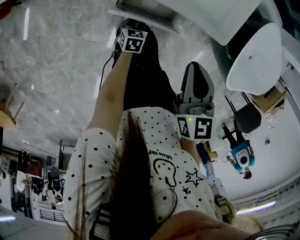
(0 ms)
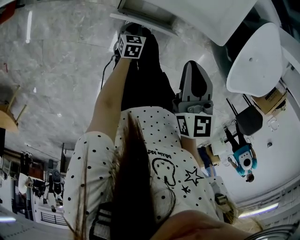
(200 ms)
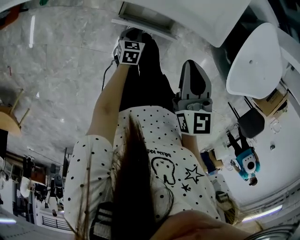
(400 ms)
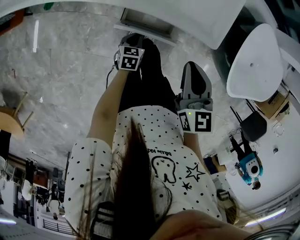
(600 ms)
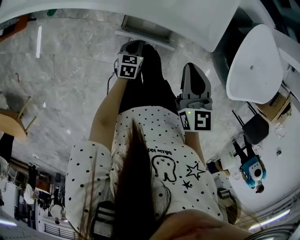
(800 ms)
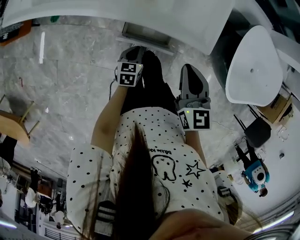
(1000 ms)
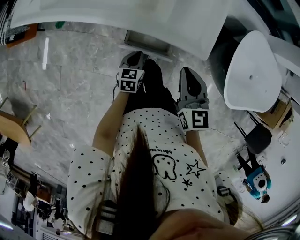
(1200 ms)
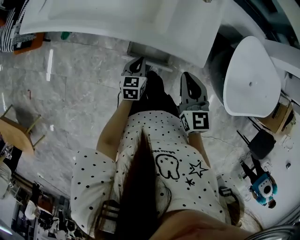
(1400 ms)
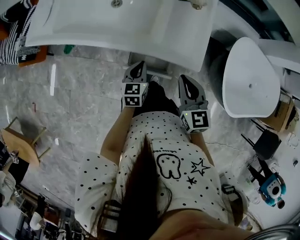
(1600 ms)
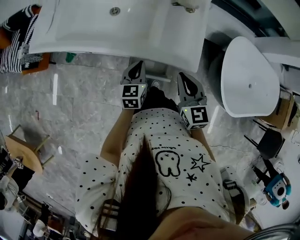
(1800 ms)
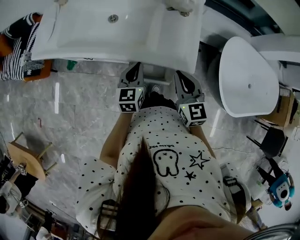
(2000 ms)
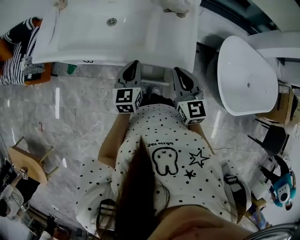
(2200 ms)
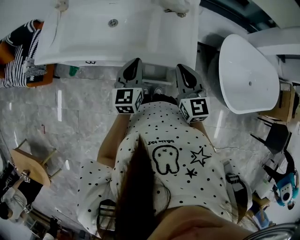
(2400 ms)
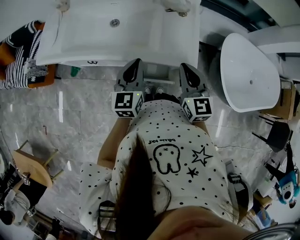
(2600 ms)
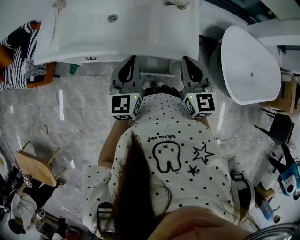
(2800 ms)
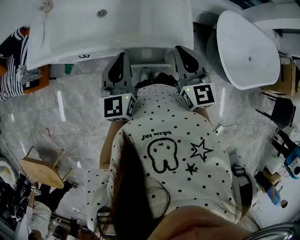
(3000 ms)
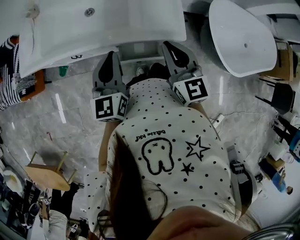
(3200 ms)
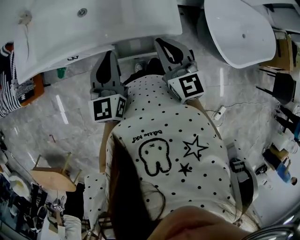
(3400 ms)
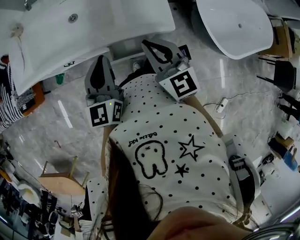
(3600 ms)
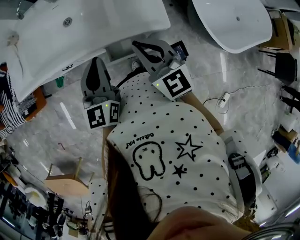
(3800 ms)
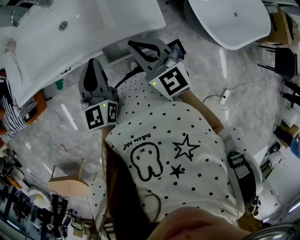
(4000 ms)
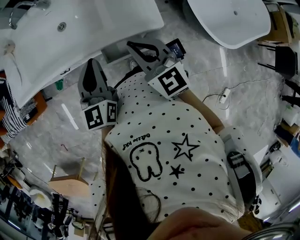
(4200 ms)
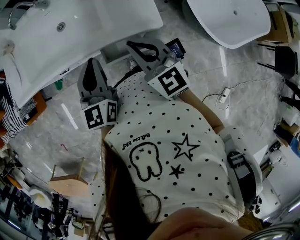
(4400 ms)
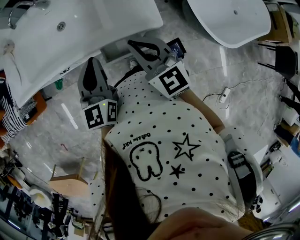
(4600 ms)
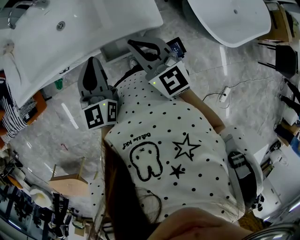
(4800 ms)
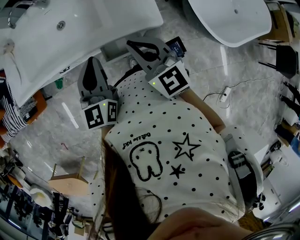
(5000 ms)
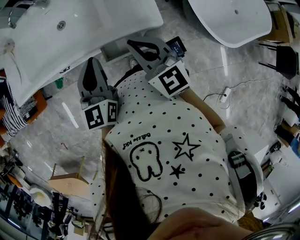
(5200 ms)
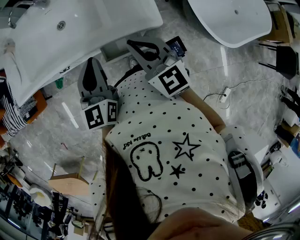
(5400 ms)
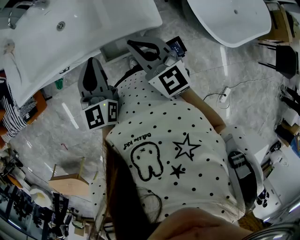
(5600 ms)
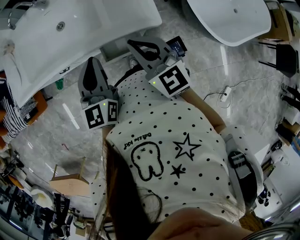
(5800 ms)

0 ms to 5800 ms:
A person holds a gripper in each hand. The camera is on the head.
0 ms to 1400 ms: The right gripper heads upward, covering about 5 cm; the left gripper shifts about 25 cm upward, turns by some 20 degrees, and closes up.
1400 ms to 2800 ms: The right gripper moves upward, approximately 10 cm. Meanwhile the left gripper moves upward, some 25 cm, and tips its fingers upward by about 30 degrees.
2800 ms to 4400 ms: There are only small adjustments of the grippers.
4400 ms to 5800 ms: Both grippers stay about where they are.

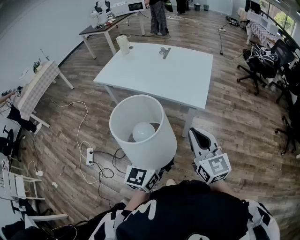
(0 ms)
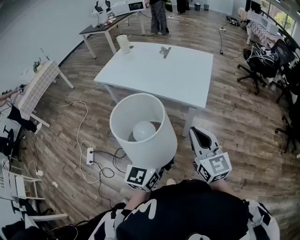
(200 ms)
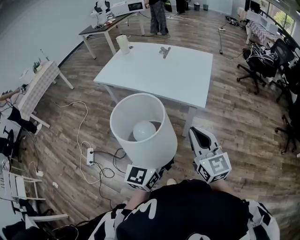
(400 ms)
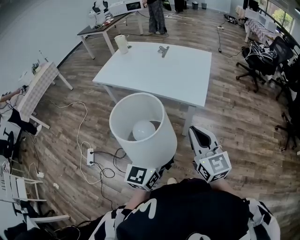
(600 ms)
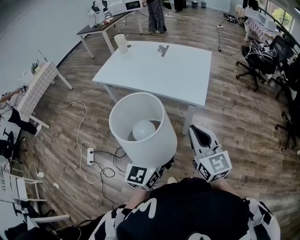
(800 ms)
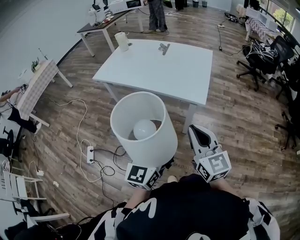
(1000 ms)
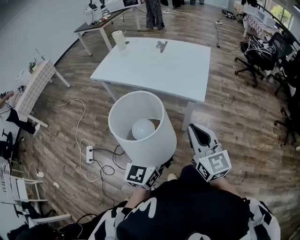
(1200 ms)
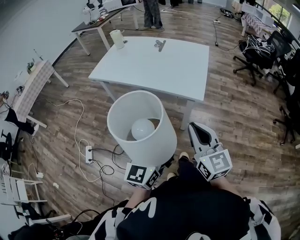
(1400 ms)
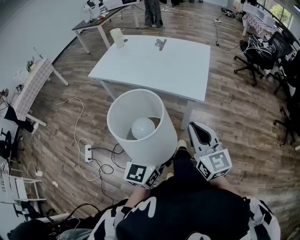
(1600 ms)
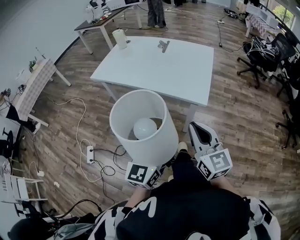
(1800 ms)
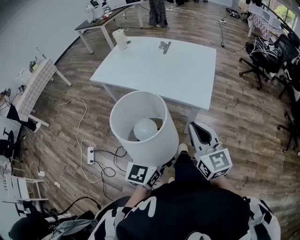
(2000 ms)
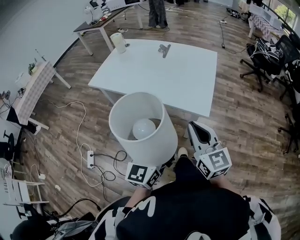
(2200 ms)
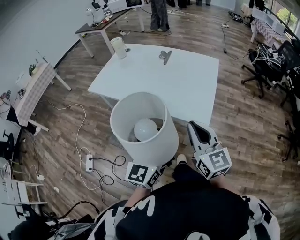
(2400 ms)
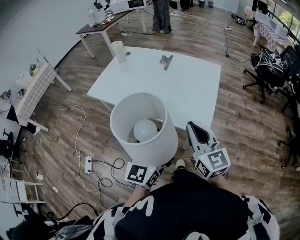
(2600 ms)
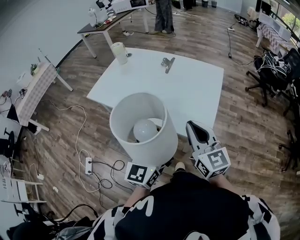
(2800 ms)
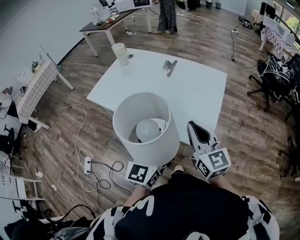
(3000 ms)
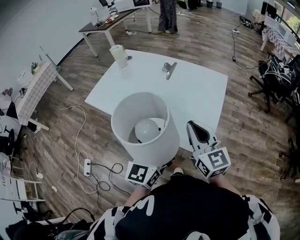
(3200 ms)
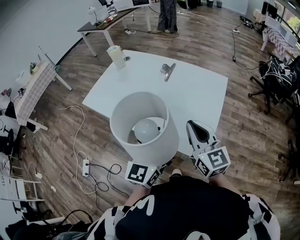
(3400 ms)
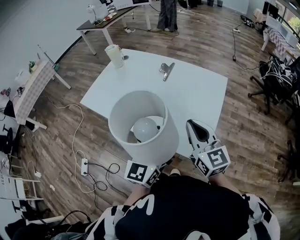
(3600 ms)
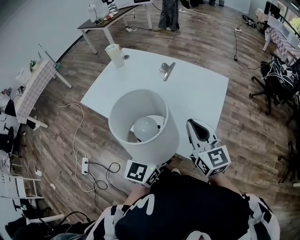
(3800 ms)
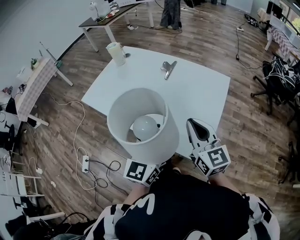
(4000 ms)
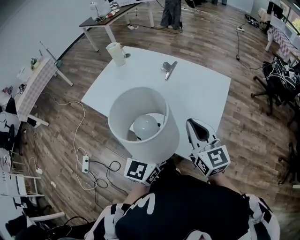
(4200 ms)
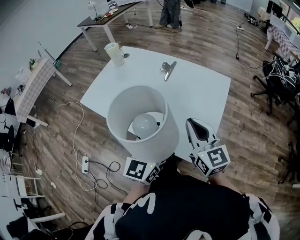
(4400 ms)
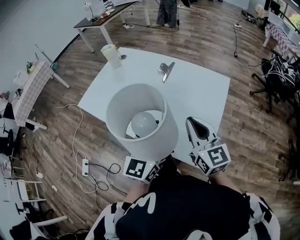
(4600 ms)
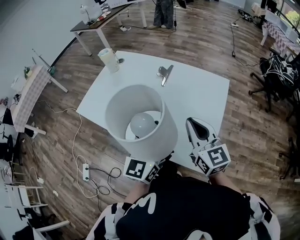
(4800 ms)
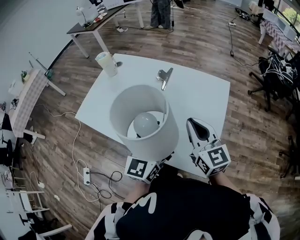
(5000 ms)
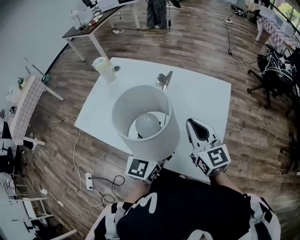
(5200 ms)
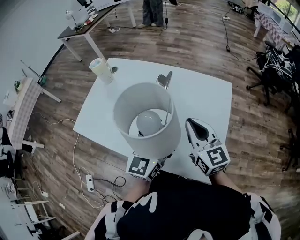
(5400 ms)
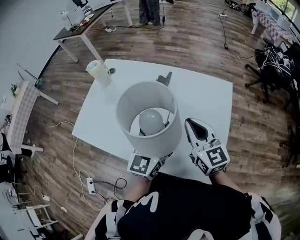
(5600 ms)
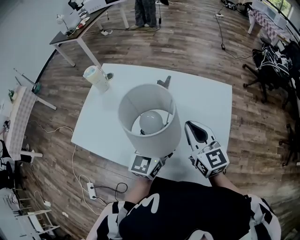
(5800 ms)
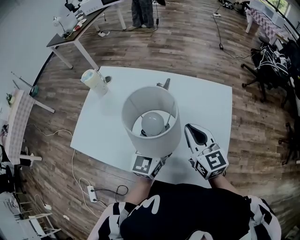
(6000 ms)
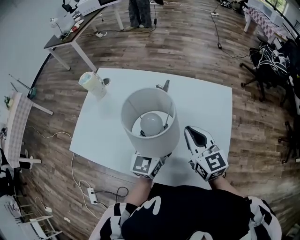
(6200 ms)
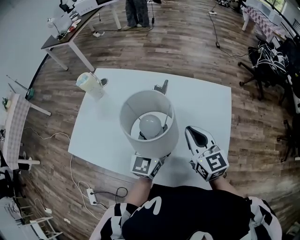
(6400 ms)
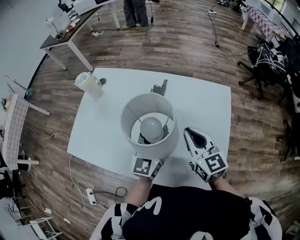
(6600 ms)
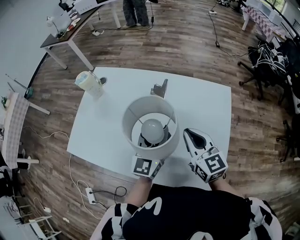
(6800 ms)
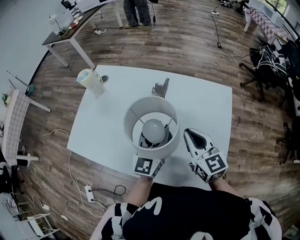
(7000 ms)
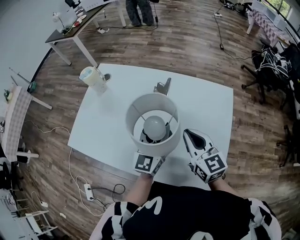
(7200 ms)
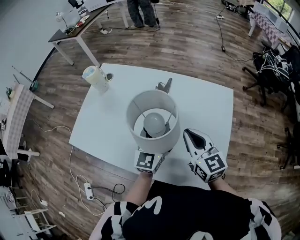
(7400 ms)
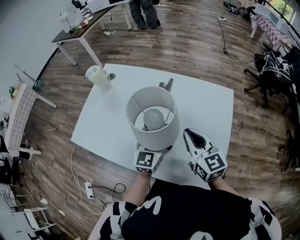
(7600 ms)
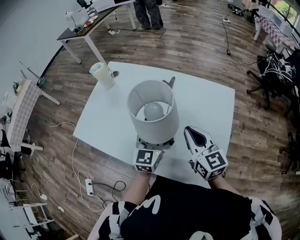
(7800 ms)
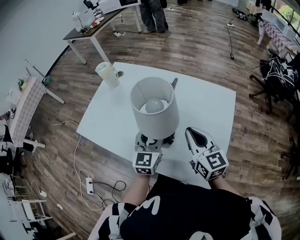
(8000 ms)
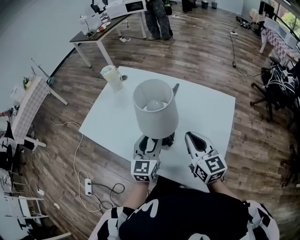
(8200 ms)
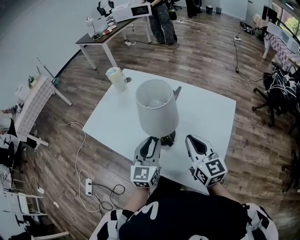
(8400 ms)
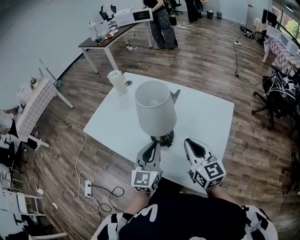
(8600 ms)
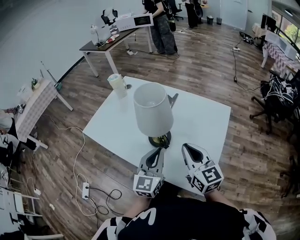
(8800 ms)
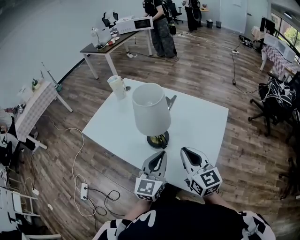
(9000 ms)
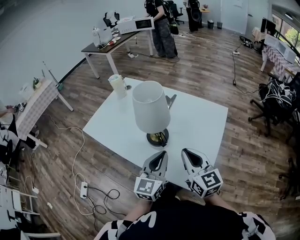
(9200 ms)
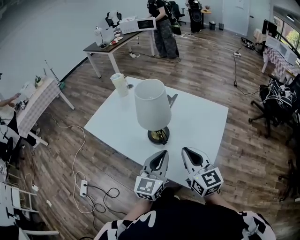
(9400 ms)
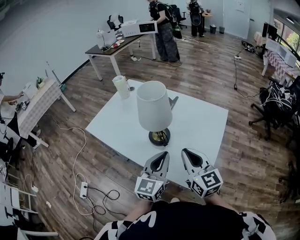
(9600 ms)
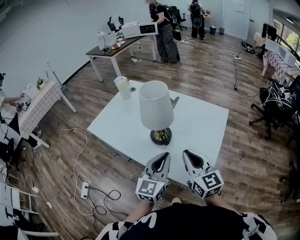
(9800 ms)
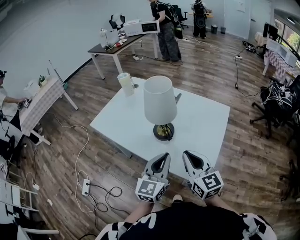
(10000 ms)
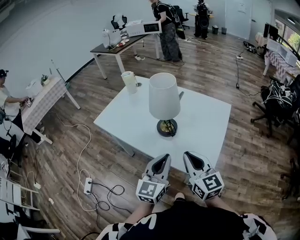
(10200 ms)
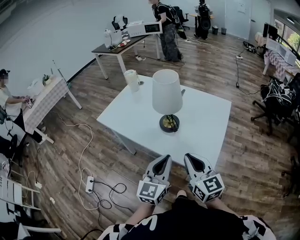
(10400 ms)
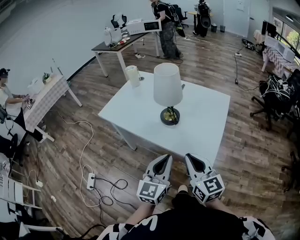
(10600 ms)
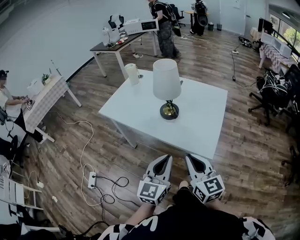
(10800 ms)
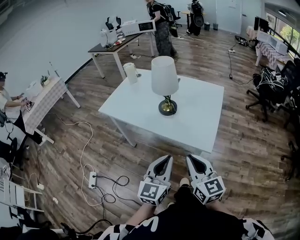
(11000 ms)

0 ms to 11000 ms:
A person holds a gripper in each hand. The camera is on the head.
0 ms to 1600 ms: The two grippers keep their place.
1600 ms to 3200 ms: The two grippers go some 30 cm forward.
3200 ms to 4800 ms: The grippers both shift forward by about 10 cm.
4800 ms to 6200 ms: Both grippers travel together forward, about 15 cm.
6200 ms to 7800 ms: The grippers move only a little.
7800 ms to 9400 ms: The two grippers go roughly 15 cm backward. The left gripper closes.
9400 ms to 11000 ms: The two grippers go approximately 25 cm backward.

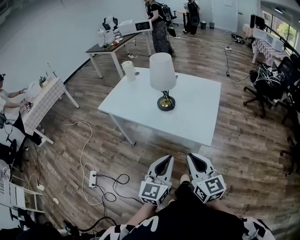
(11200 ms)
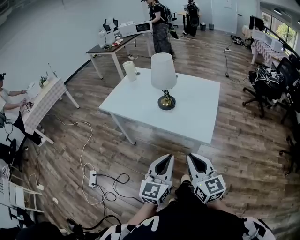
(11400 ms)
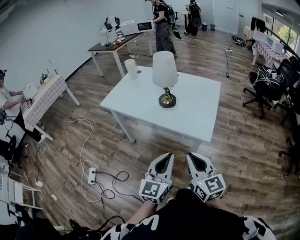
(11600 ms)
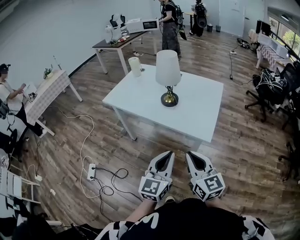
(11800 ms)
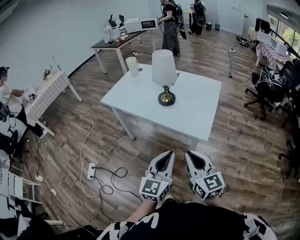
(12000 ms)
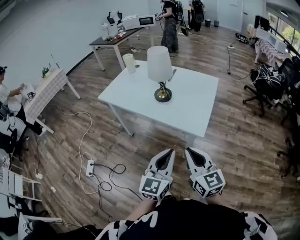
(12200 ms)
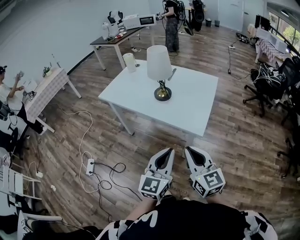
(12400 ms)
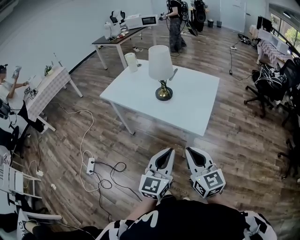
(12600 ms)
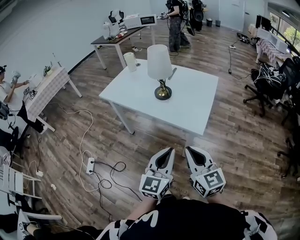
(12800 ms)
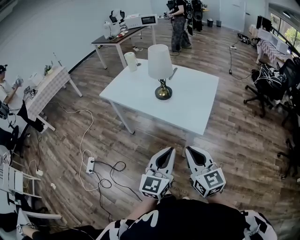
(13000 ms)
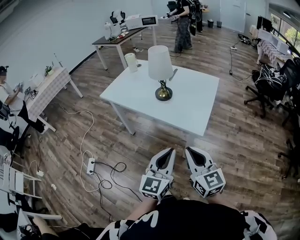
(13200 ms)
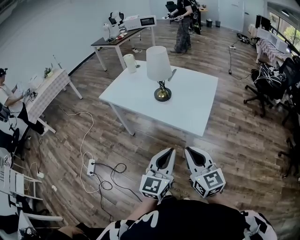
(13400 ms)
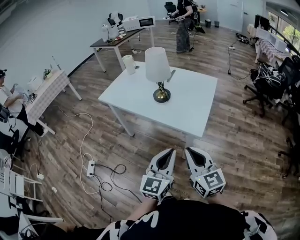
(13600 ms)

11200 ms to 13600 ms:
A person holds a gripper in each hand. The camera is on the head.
11200 ms to 12400 ms: The right gripper shifts by approximately 5 cm; the left gripper moves about 5 cm.
12400 ms to 13600 ms: The two grippers keep their place.

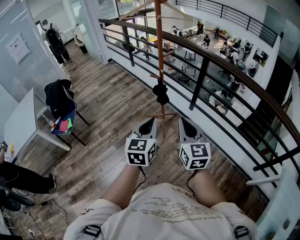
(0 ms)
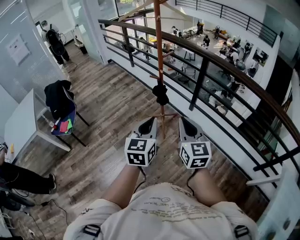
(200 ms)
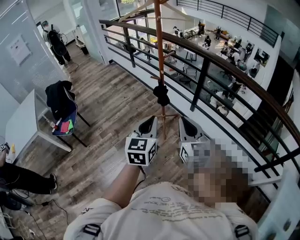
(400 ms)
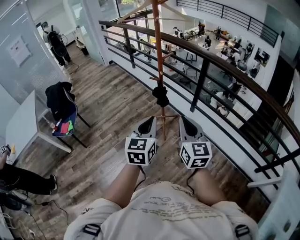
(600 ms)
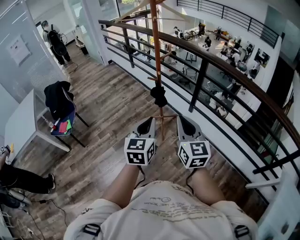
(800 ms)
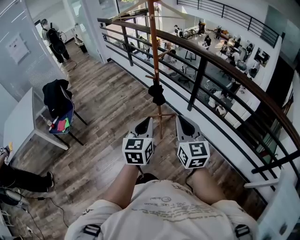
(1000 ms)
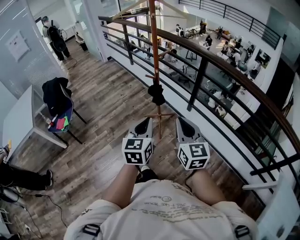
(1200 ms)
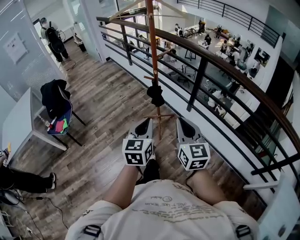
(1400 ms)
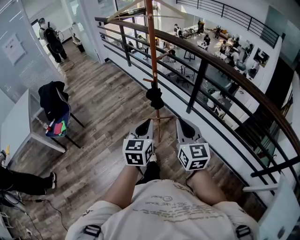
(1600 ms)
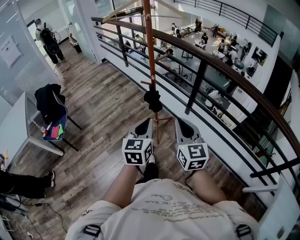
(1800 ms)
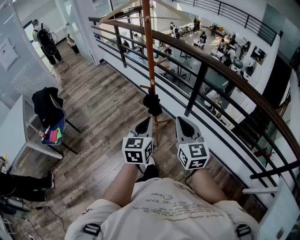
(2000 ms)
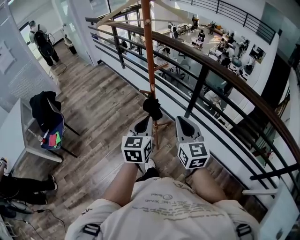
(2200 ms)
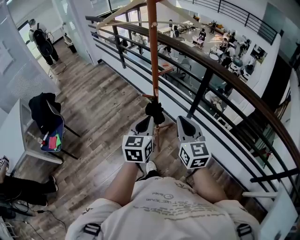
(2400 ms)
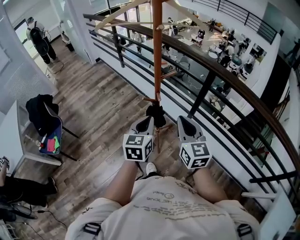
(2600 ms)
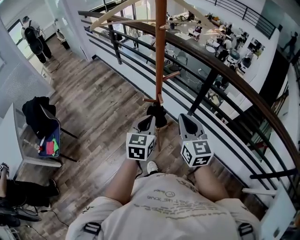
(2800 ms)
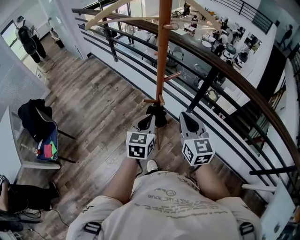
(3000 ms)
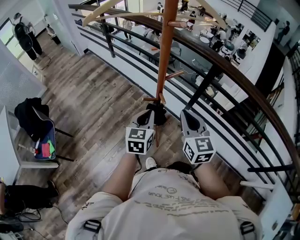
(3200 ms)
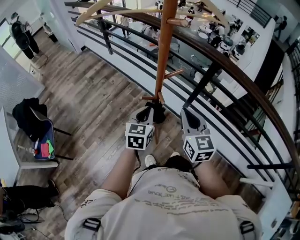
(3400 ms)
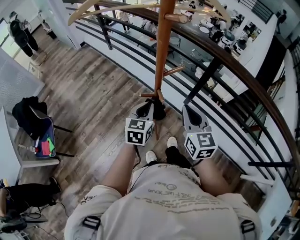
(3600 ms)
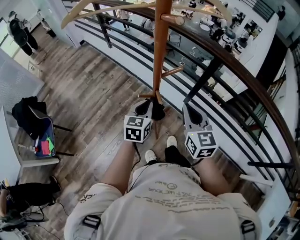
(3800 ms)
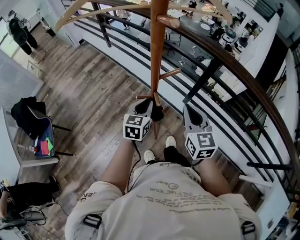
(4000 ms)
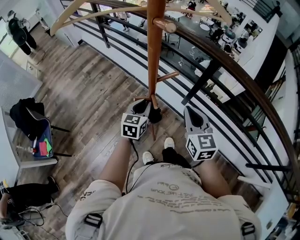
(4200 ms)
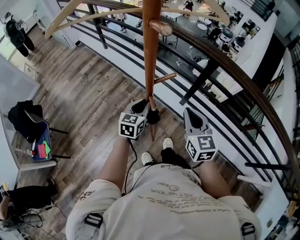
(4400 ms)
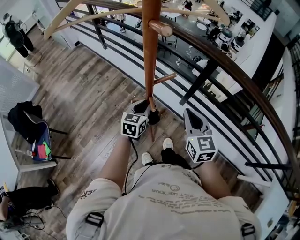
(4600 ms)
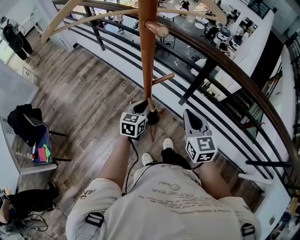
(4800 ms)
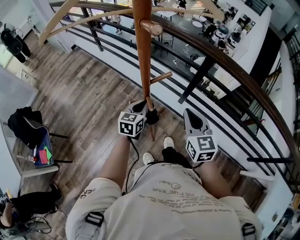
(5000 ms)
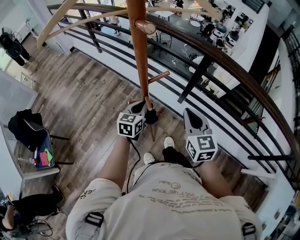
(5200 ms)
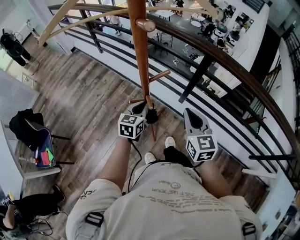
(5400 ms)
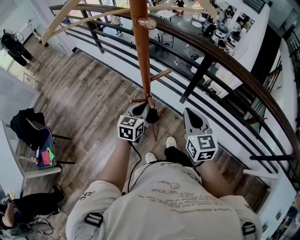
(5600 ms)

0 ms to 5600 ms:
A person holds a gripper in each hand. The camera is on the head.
0 ms to 1400 ms: The right gripper changes place by some 5 cm. Meanwhile the left gripper moves approximately 5 cm.
1400 ms to 2800 ms: Both grippers travel together forward, about 30 cm.
2800 ms to 4200 ms: The right gripper travels forward by about 10 cm. The left gripper is displaced forward and downward by some 20 cm.
4200 ms to 5600 ms: The grippers make only small movements.
